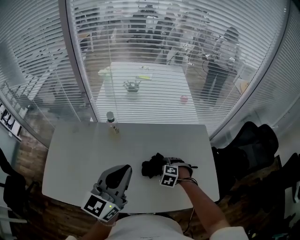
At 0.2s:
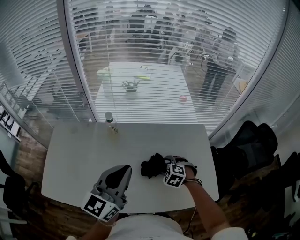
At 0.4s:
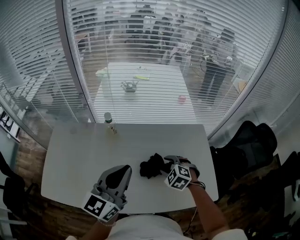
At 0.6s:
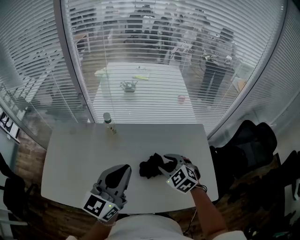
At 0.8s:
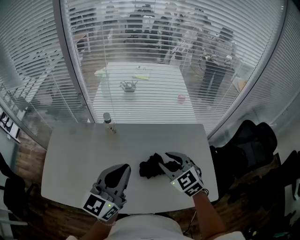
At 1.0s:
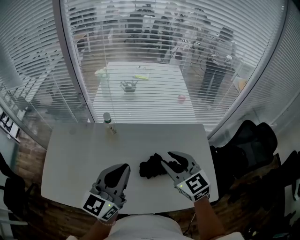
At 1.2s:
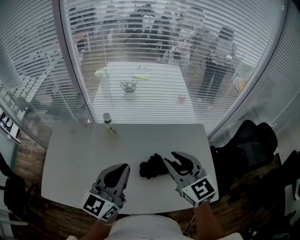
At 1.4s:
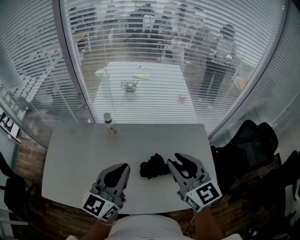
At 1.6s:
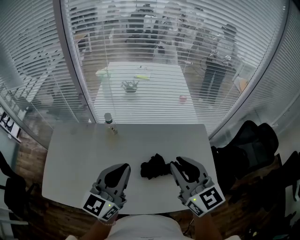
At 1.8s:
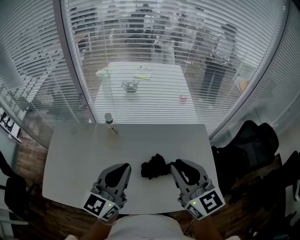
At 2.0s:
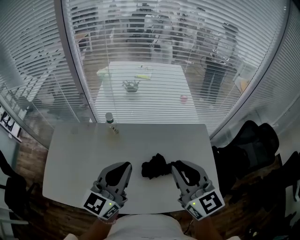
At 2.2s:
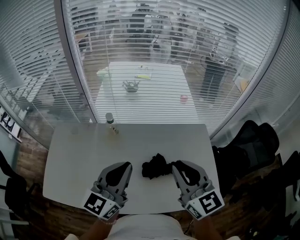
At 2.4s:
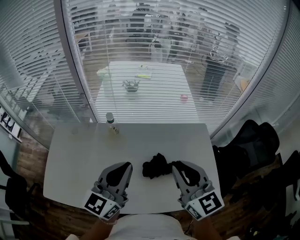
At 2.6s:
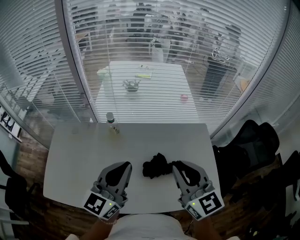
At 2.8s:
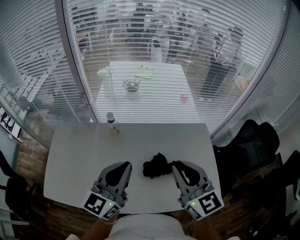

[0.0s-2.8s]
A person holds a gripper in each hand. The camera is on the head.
0.0s to 1.4s: The right gripper travels upward by some 35 cm, tips its fingers upward by some 60 degrees, and closes.
1.4s to 2.8s: There are only small adjustments of the grippers.

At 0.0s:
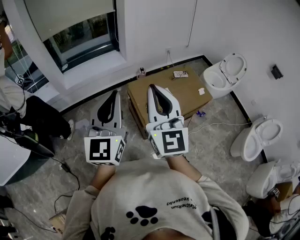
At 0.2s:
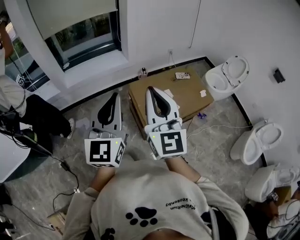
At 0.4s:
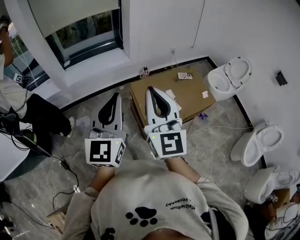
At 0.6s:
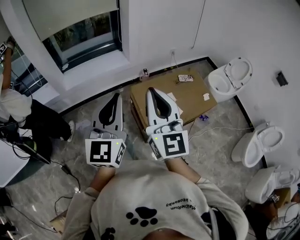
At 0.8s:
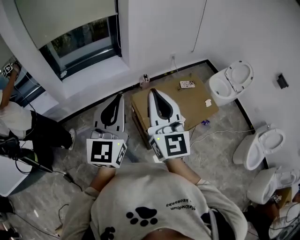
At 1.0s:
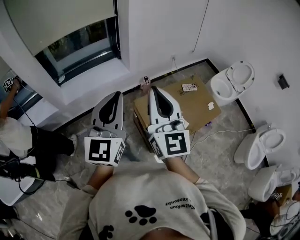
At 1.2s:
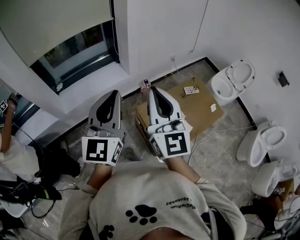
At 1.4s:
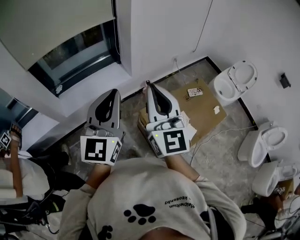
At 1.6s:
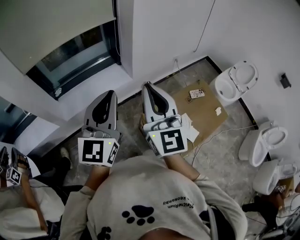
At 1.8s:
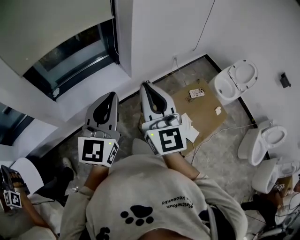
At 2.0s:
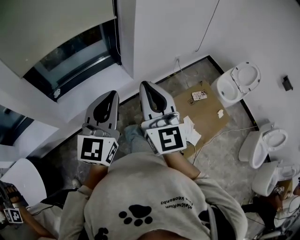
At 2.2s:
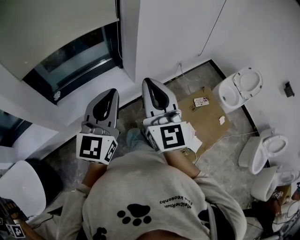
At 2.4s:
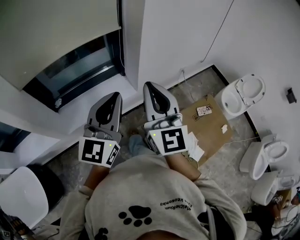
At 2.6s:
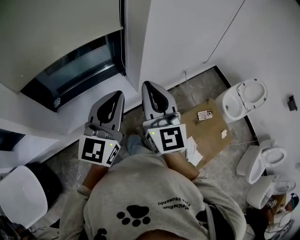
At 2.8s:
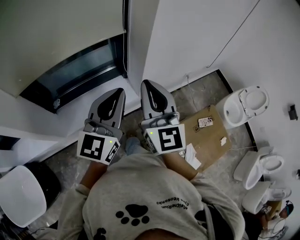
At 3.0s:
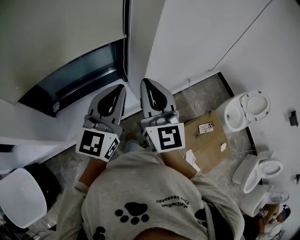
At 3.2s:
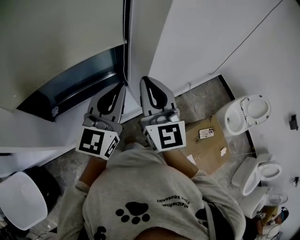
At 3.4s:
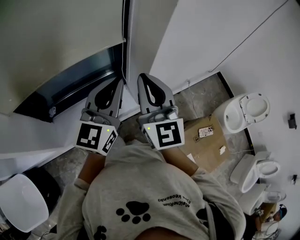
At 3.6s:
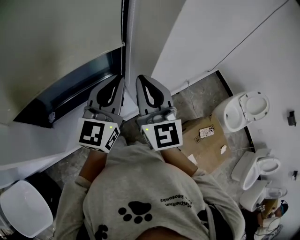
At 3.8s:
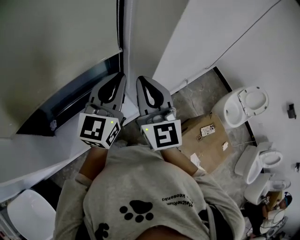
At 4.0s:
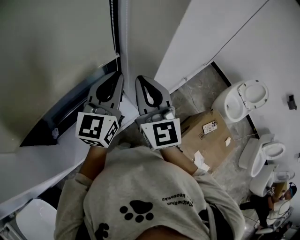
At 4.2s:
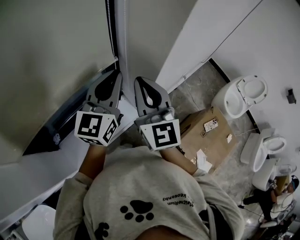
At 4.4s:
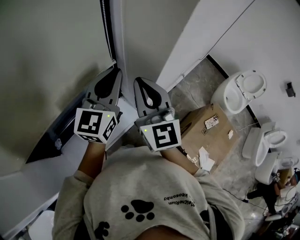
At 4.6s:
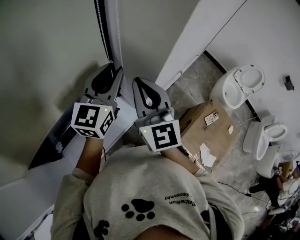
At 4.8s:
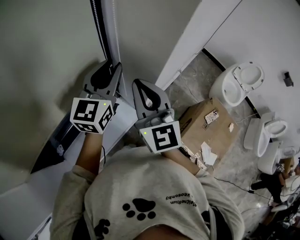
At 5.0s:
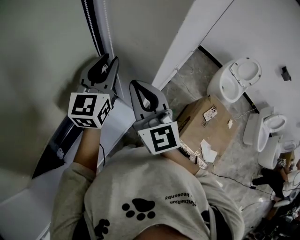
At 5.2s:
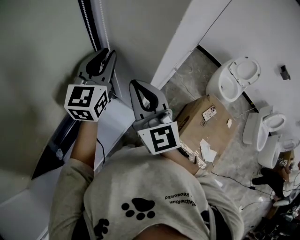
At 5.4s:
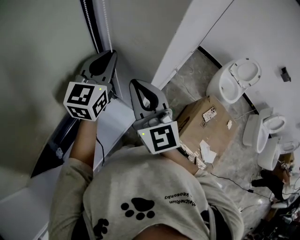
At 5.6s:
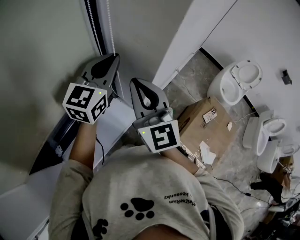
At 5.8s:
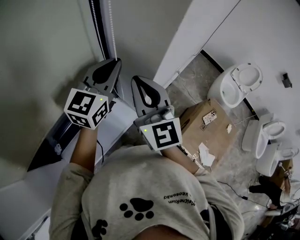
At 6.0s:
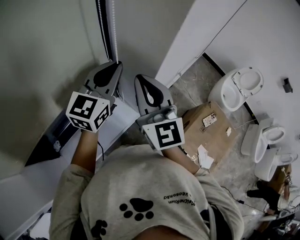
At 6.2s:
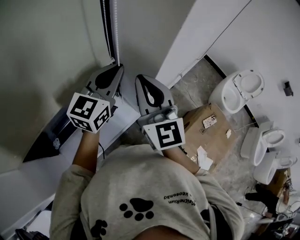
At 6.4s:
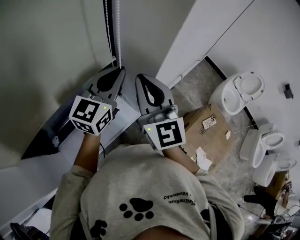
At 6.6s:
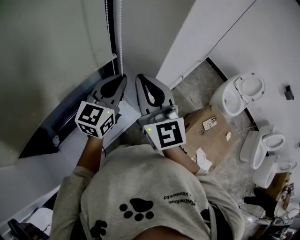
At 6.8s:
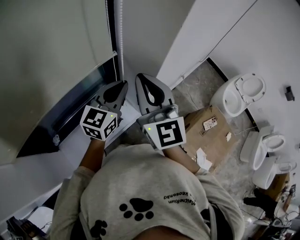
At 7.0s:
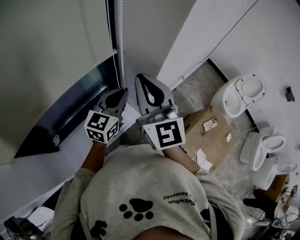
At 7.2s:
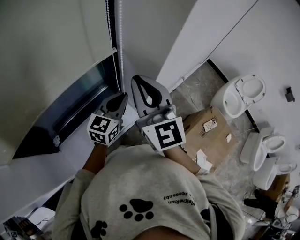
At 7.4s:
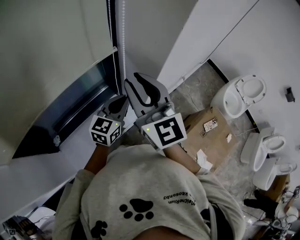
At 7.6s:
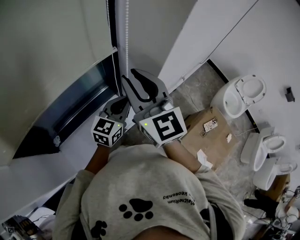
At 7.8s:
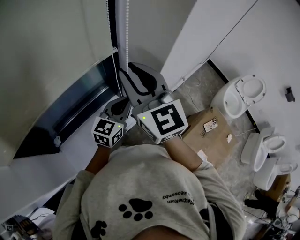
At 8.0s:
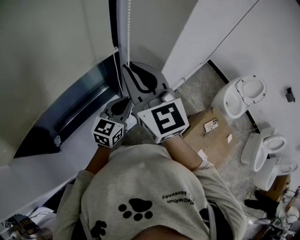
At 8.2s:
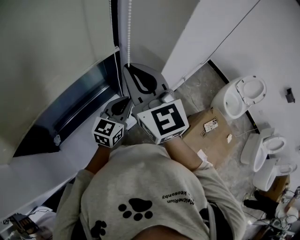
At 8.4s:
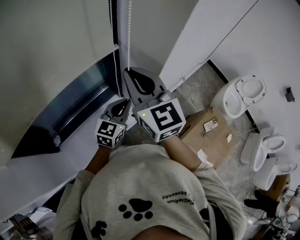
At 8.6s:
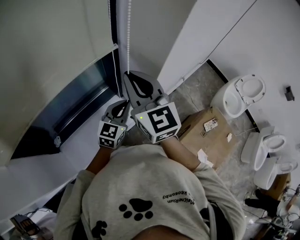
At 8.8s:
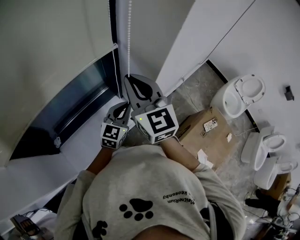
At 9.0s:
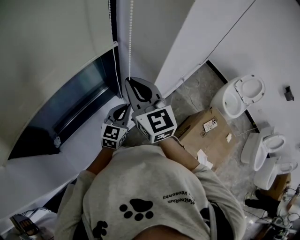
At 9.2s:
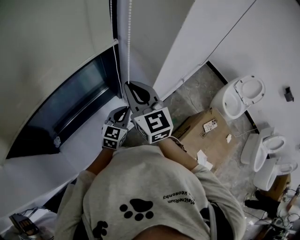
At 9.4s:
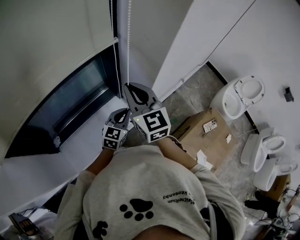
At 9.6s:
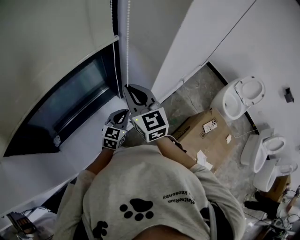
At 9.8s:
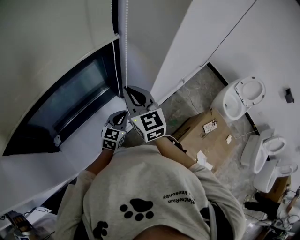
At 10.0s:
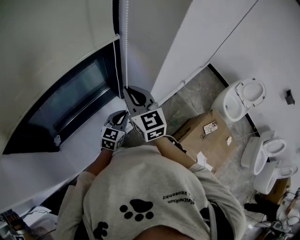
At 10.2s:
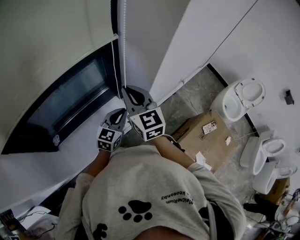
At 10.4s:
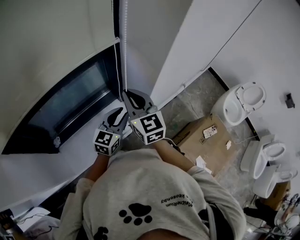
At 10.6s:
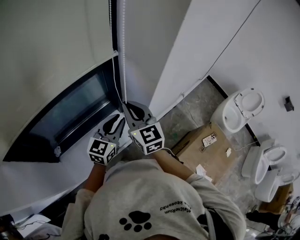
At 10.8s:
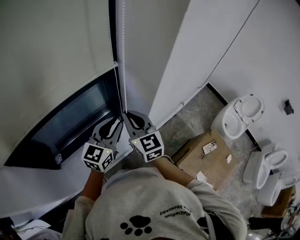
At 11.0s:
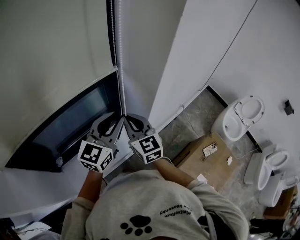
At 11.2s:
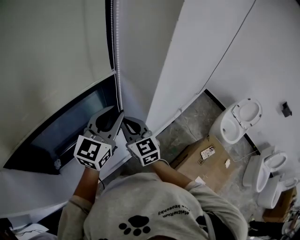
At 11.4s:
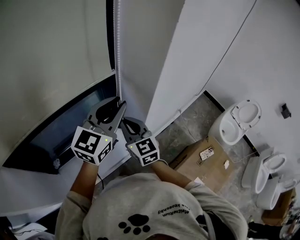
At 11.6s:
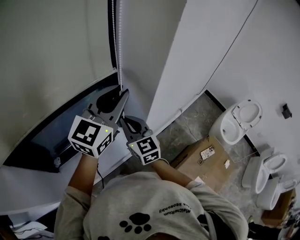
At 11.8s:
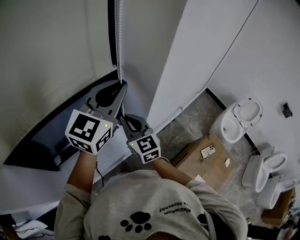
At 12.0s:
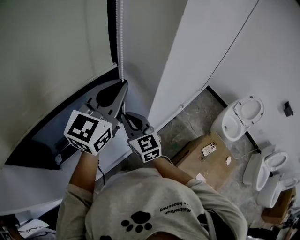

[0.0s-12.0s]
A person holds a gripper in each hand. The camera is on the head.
0.0s to 1.6s: Both grippers move forward and to the left, roughly 35 cm.
1.6s to 3.0s: Both grippers travel together forward, approximately 30 cm.
3.0s to 4.4s: Both grippers move forward, roughly 20 cm.
4.4s to 6.0s: The left gripper goes forward and returns, approximately 10 cm each way, and opens, then closes once more.
6.0s to 7.6s: The left gripper travels downward and backward by some 15 cm; the right gripper opens its fingers.
7.6s to 9.0s: Both grippers travel together downward, approximately 5 cm. The right gripper closes.
9.0s to 10.4s: The right gripper moves downward, roughly 5 cm; the left gripper goes downward and returns, approximately 5 cm each way, and opens its fingers.
10.4s to 12.0s: The left gripper shifts roughly 30 cm upward, and closes up.

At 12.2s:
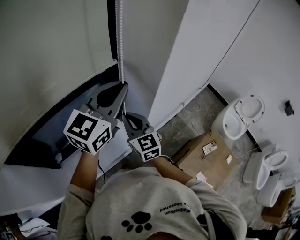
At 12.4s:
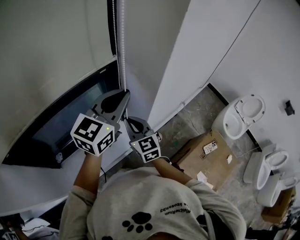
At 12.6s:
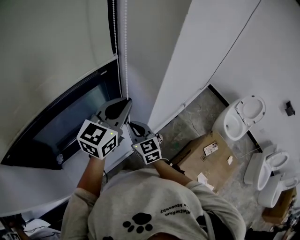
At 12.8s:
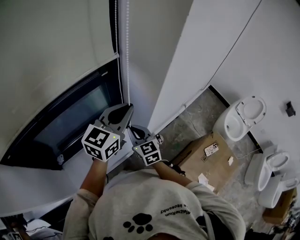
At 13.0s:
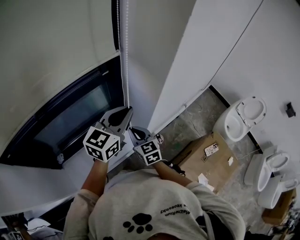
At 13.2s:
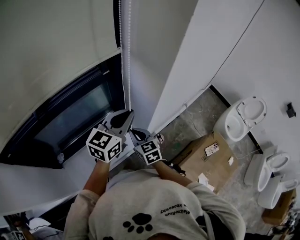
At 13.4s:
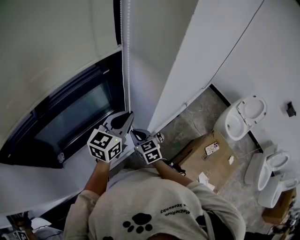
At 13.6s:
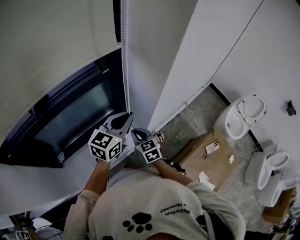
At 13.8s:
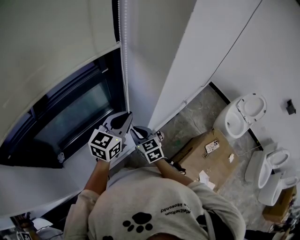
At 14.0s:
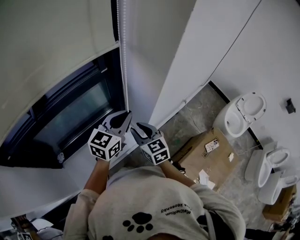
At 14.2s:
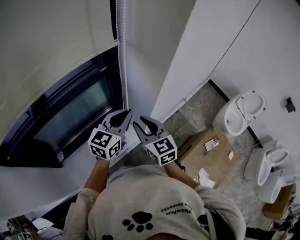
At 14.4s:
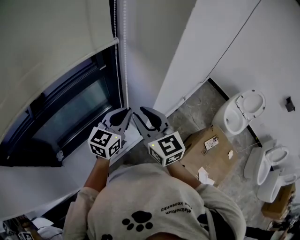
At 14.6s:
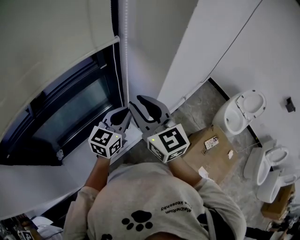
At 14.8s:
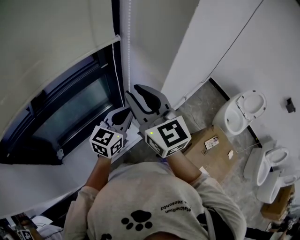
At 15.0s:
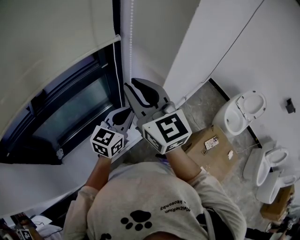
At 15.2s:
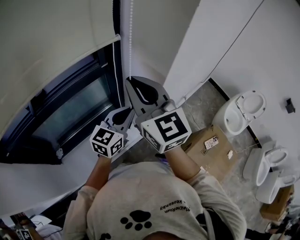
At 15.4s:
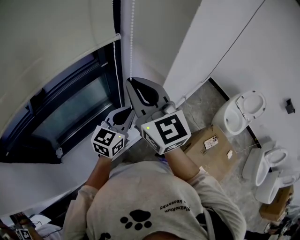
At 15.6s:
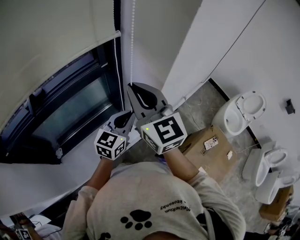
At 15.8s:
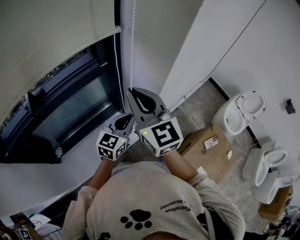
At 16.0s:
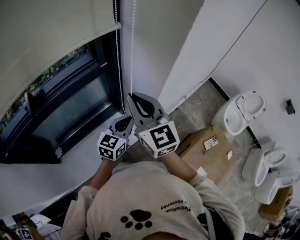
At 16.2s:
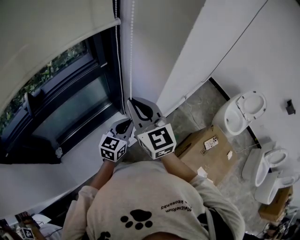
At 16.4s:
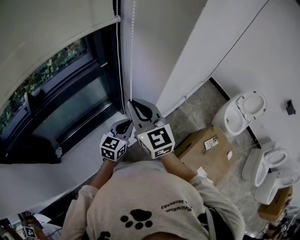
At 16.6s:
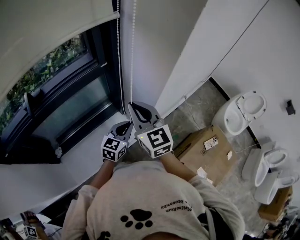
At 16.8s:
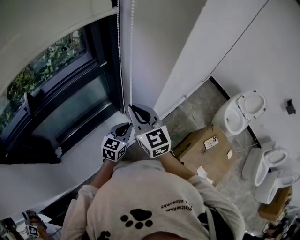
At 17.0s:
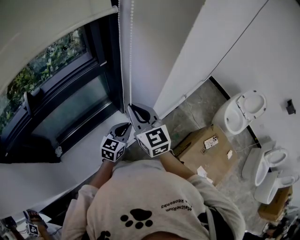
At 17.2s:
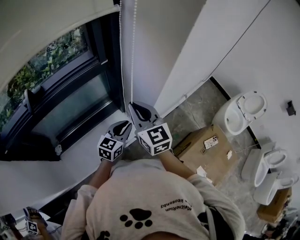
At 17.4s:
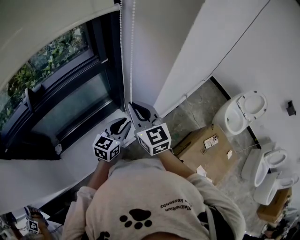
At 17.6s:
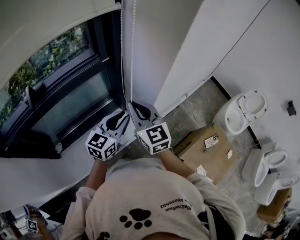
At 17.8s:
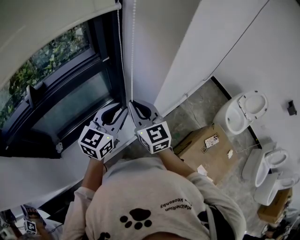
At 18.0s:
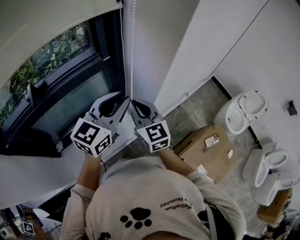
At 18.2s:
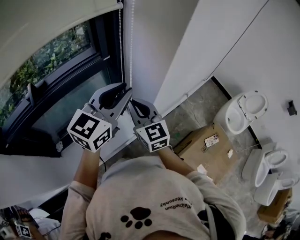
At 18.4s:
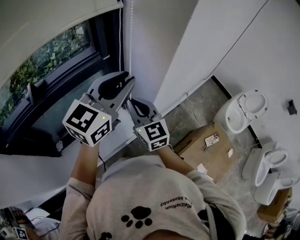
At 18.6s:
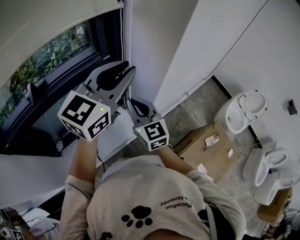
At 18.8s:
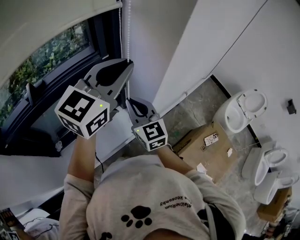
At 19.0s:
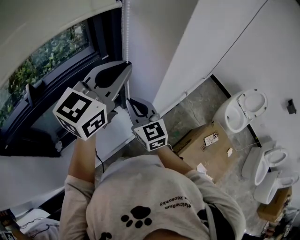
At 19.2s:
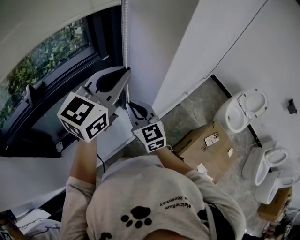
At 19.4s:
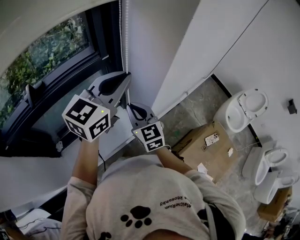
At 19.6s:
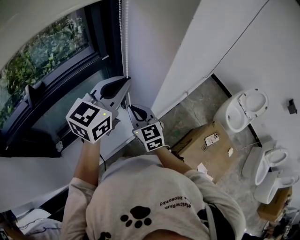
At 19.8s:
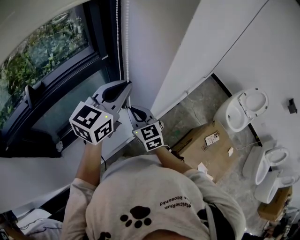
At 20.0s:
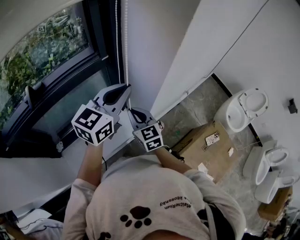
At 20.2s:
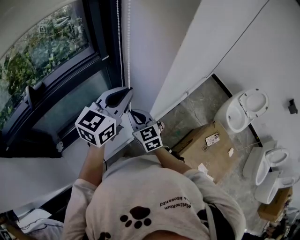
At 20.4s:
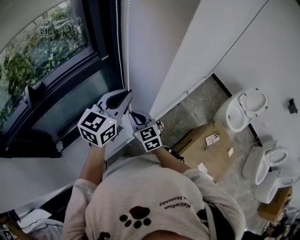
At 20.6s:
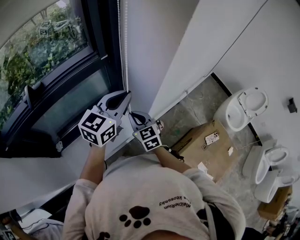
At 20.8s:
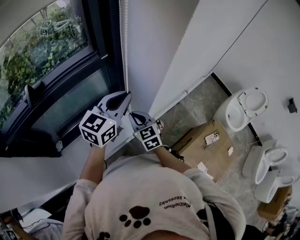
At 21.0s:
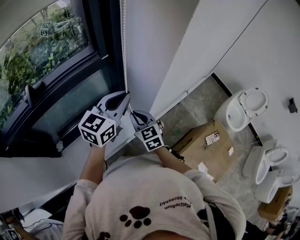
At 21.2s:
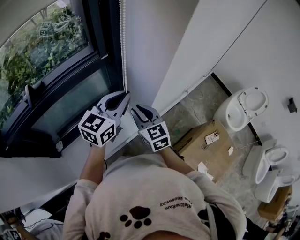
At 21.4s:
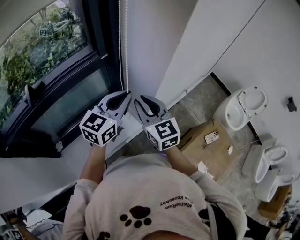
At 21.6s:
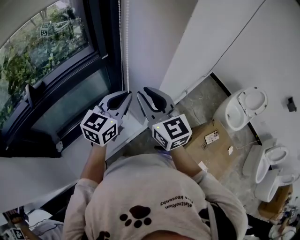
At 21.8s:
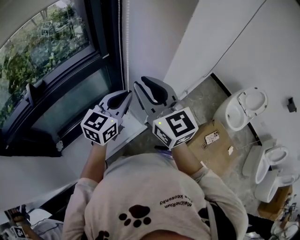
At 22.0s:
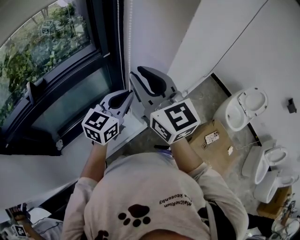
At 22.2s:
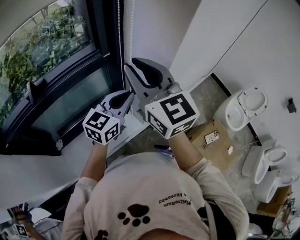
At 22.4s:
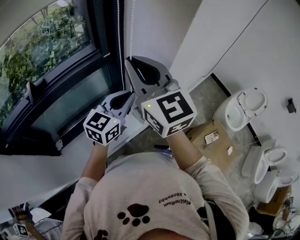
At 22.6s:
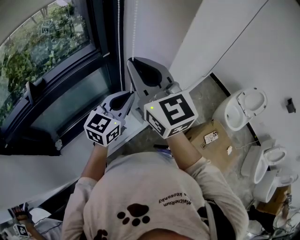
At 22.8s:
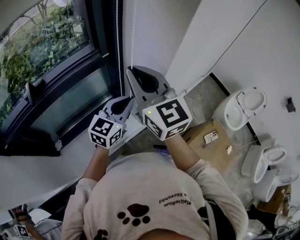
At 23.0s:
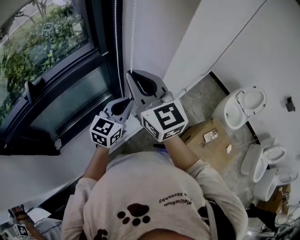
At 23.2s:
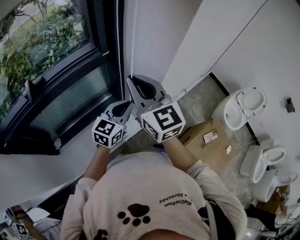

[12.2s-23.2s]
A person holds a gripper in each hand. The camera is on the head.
12.2s to 13.8s: Both grippers travel together downward, roughly 15 cm.
13.8s to 15.4s: The right gripper moves upward, about 30 cm, angles its fingers upward, by roughly 30 degrees, and opens, then closes once more.
15.4s to 17.0s: Both grippers travel together downward, roughly 15 cm.
17.0s to 18.4s: The left gripper heads upward, covering approximately 30 cm, and turns by some 20 degrees.
18.4s to 20.0s: Both grippers move downward, approximately 10 cm.
20.0s to 21.6s: The right gripper moves upward, about 15 cm, while the left gripper goes approximately 5 cm downward.
21.6s to 23.2s: The left gripper heads downward, covering roughly 10 cm.
